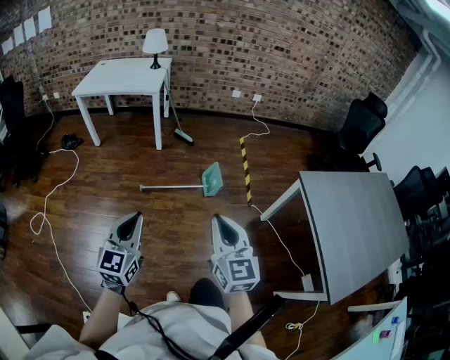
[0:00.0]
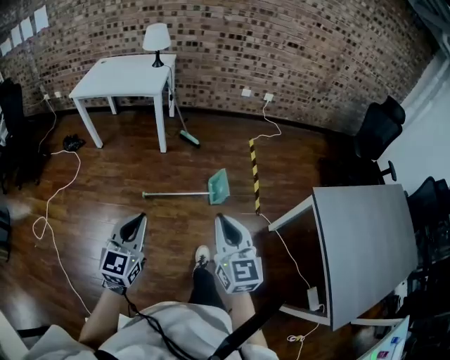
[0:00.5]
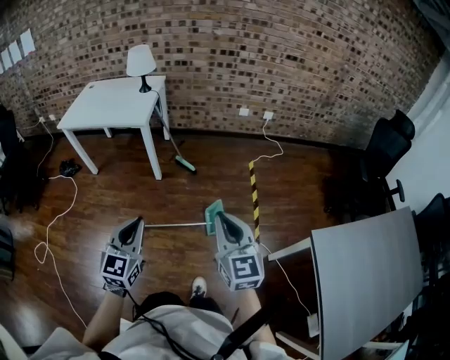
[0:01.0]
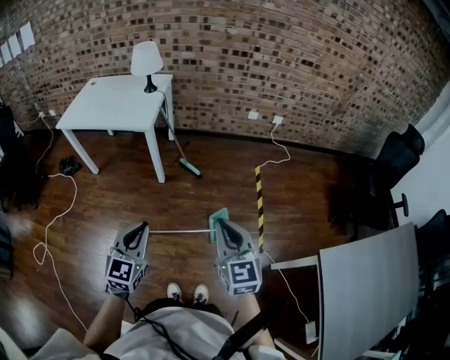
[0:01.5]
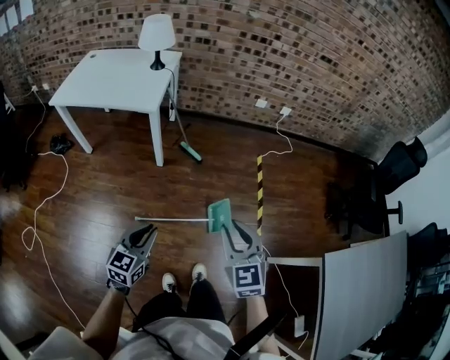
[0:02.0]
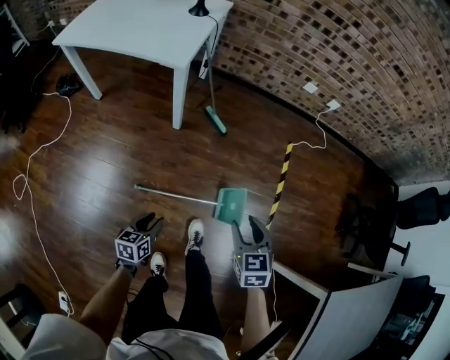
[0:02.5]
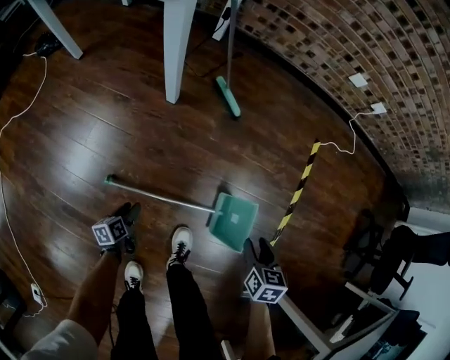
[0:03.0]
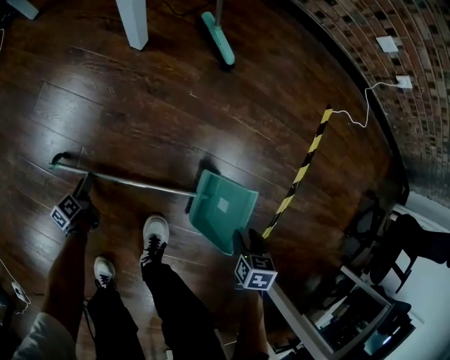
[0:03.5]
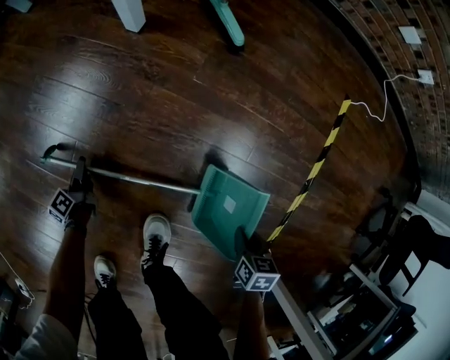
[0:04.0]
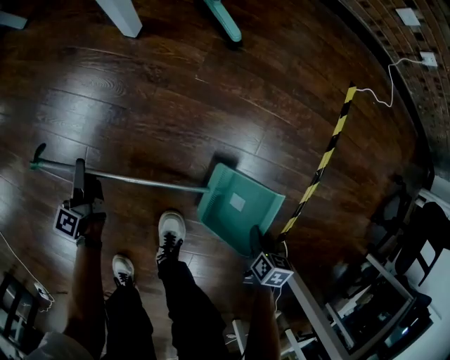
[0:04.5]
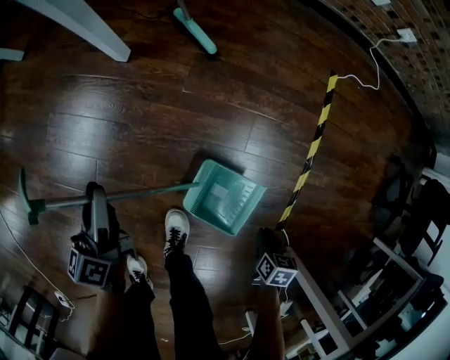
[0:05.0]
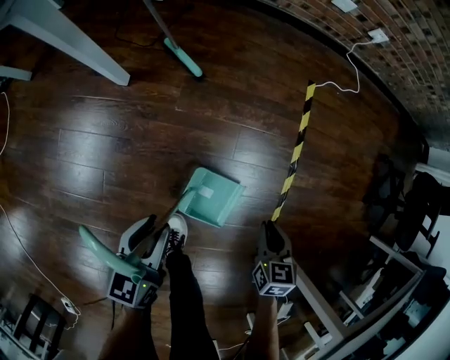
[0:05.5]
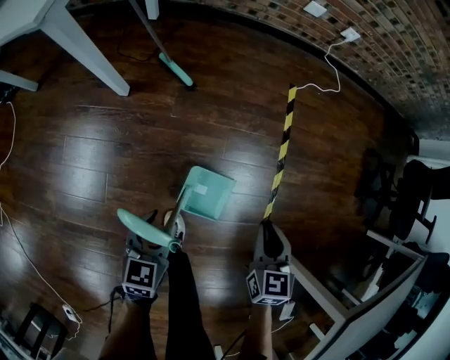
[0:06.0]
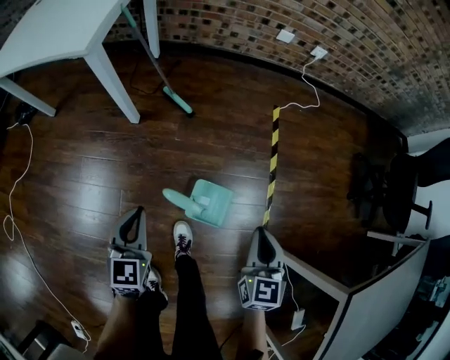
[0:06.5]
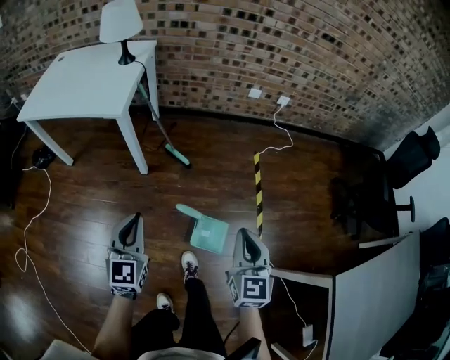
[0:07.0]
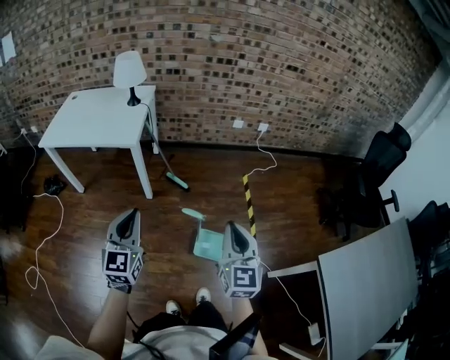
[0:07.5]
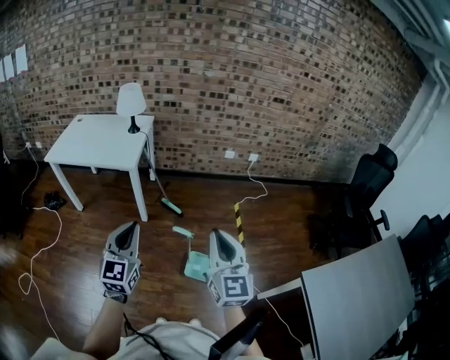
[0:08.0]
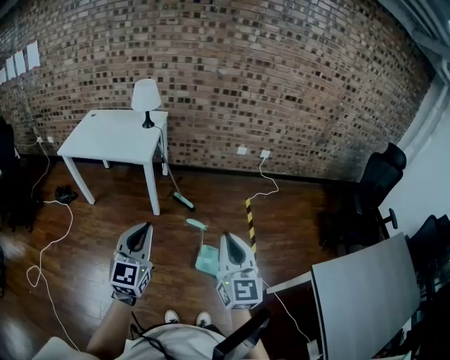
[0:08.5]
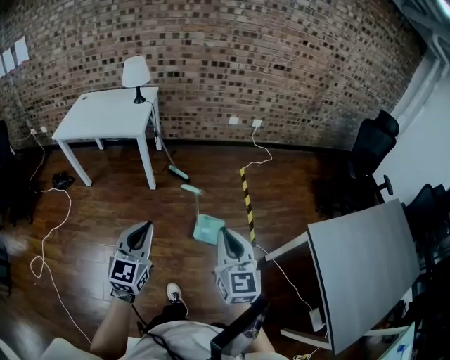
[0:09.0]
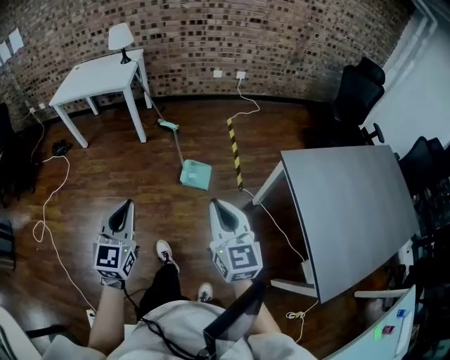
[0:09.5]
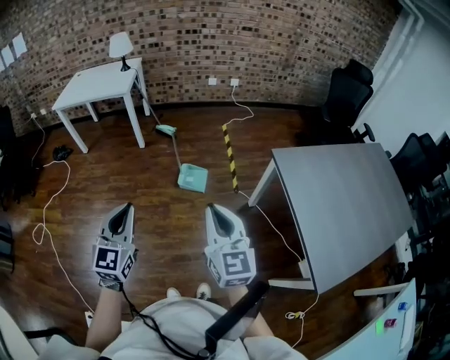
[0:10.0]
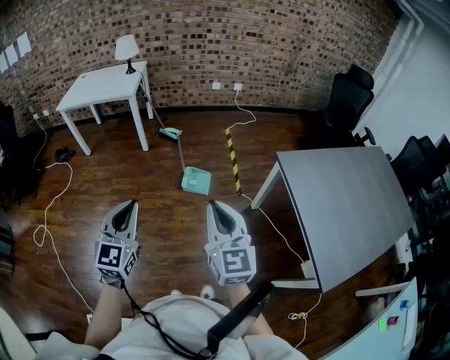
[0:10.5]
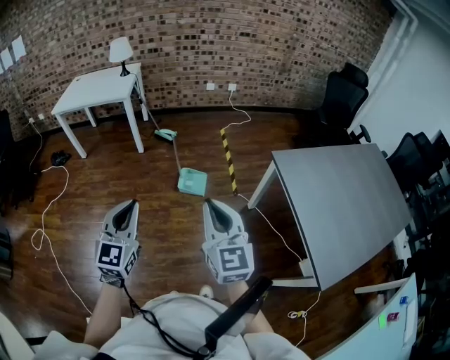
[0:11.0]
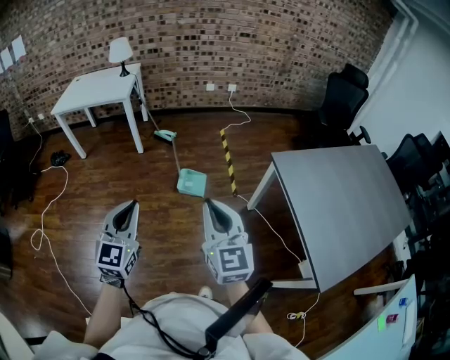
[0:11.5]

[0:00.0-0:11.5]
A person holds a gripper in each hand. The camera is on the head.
0:00.0 to 0:02.0: The pair of grippers is taken forward, about 50 cm. The right gripper turns by roughly 20 degrees, and opens.
0:02.0 to 0:04.0: The grippers both shift downward by some 80 cm. The right gripper tilts its fingers some 50 degrees downward, and opens, then closes once more. The left gripper twists roughly 70 degrees counterclockwise, seen from behind, and opens, then closes again.
0:04.0 to 0:06.0: Both grippers move upward, about 40 cm. The left gripper rotates around the line of its fingers by some 70 degrees, clockwise from behind, while the right gripper turns by about 30 degrees.
0:06.0 to 0:07.5: The two grippers go approximately 50 cm upward. The right gripper tips its fingers upward by approximately 40 degrees, while the left gripper tips its fingers upward by approximately 40 degrees, and closes.
0:07.5 to 0:09.5: The pair of grippers is taken backward, some 50 cm.
0:09.5 to 0:11.5: The left gripper changes place by about 5 cm, while the right gripper moves backward, roughly 5 cm.

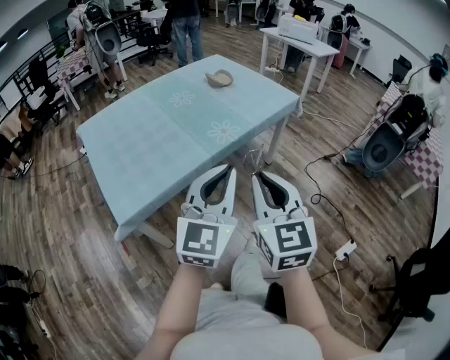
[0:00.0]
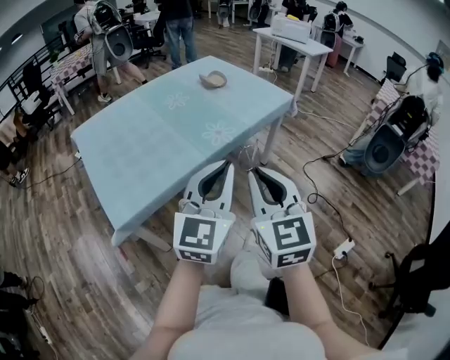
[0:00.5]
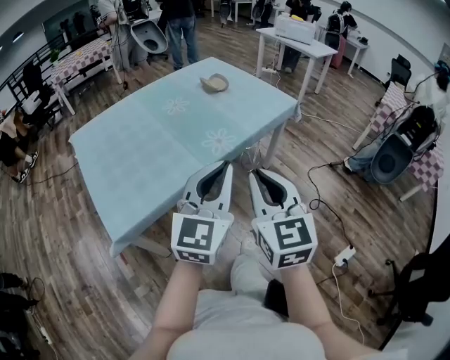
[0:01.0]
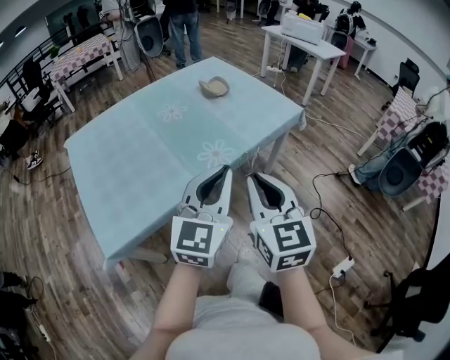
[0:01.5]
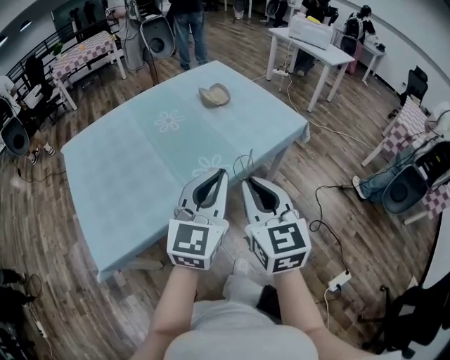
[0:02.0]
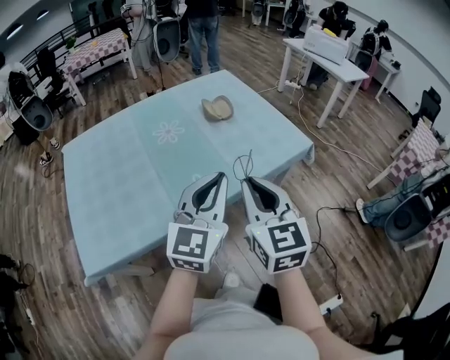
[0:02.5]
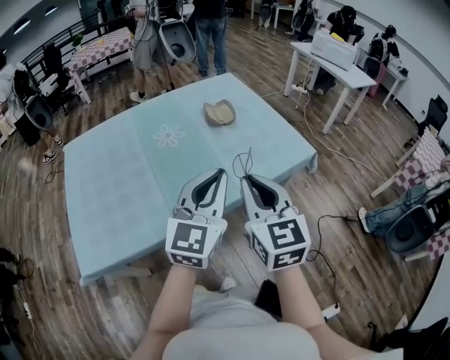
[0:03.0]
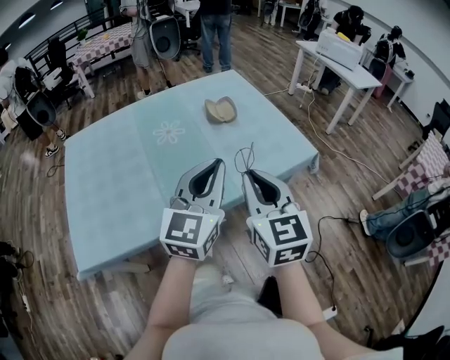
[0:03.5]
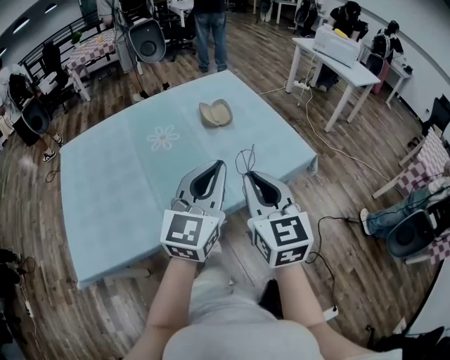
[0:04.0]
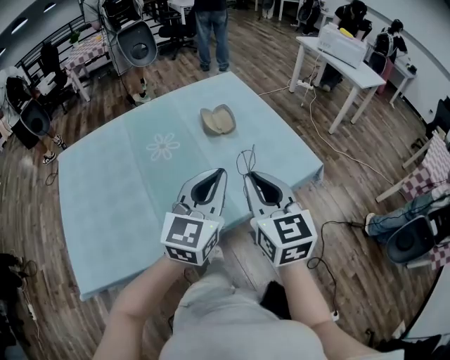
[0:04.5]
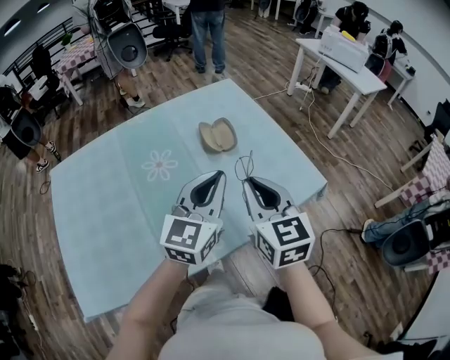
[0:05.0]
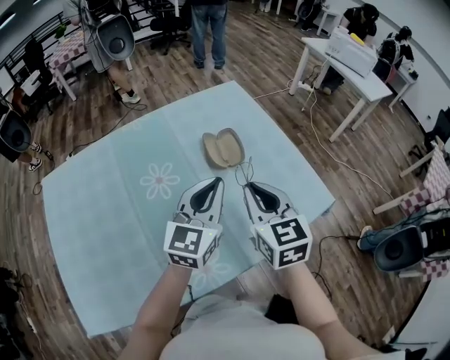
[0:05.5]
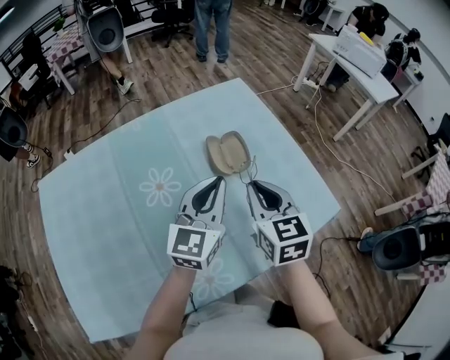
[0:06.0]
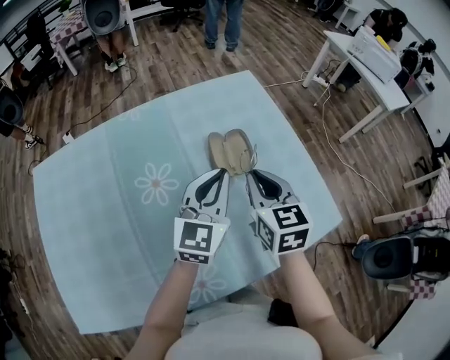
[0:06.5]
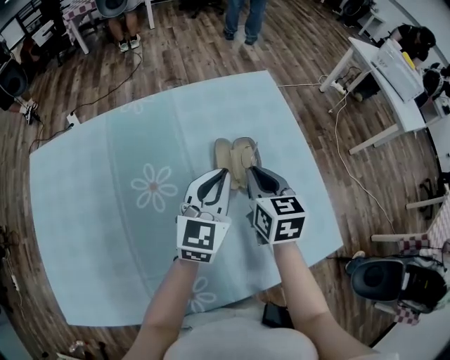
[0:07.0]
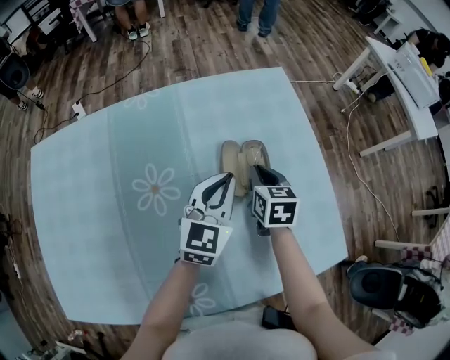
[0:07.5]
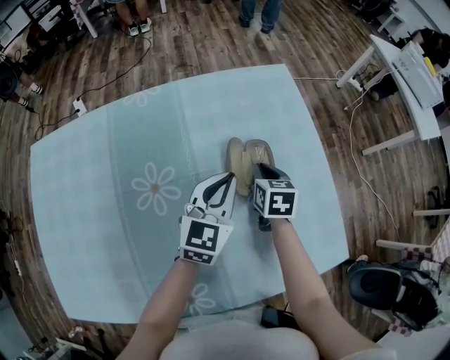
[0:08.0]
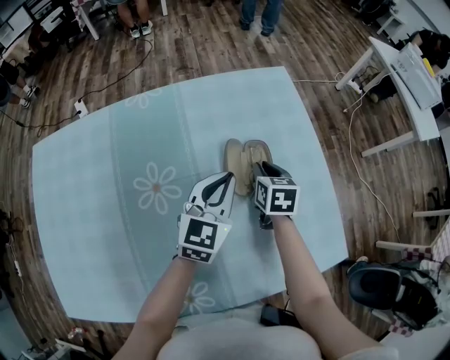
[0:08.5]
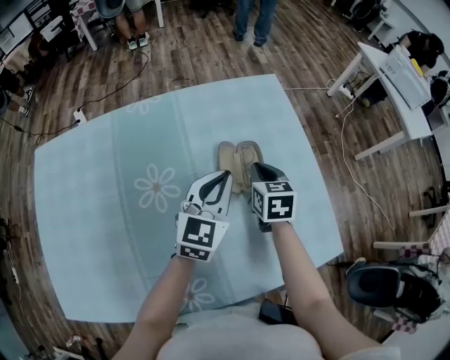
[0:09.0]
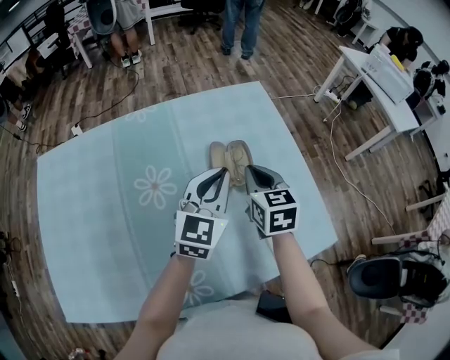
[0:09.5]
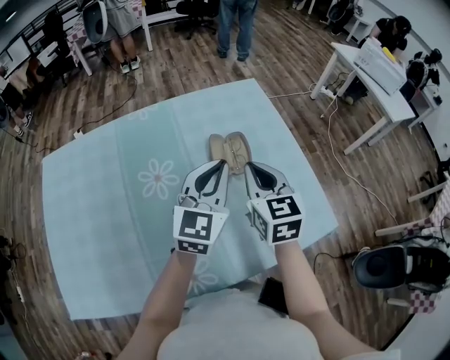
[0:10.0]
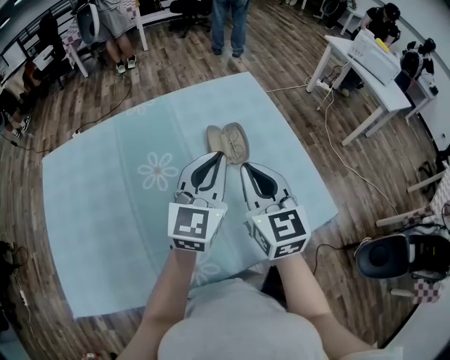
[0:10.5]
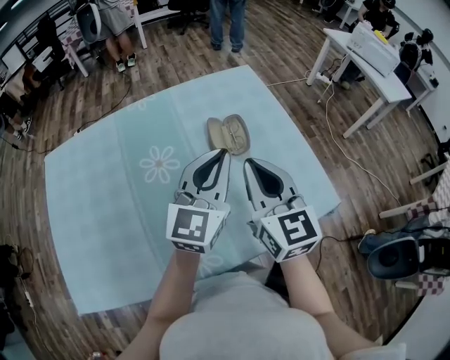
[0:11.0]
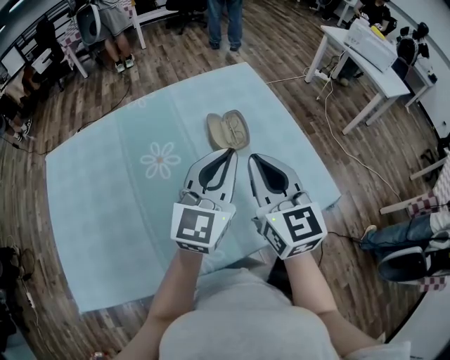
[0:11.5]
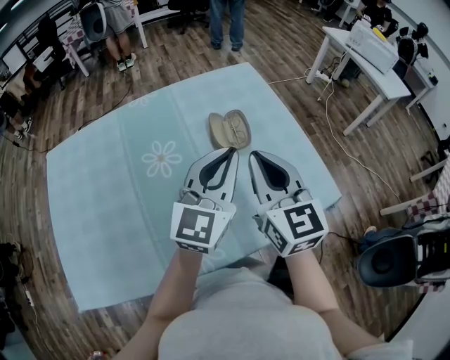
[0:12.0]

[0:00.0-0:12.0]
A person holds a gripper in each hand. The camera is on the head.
0:00.0 to 0:02.0: Both grippers move forward, some 25 cm.
0:02.0 to 0:04.0: Both grippers travel together forward and to the right, some 15 cm.
0:04.0 to 0:06.0: The two grippers go some 30 cm forward.
0:06.0 to 0:08.0: The left gripper is displaced forward and downward by roughly 15 cm; the right gripper moves downward and forward, approximately 30 cm, and rotates approximately 20 degrees.
0:08.0 to 0:10.0: The left gripper travels upward and backward by some 15 cm. The right gripper travels upward and backward by roughly 25 cm, and rotates approximately 30 degrees.
0:10.0 to 0:12.0: The right gripper shifts about 10 cm backward and upward. The left gripper shifts some 10 cm backward.

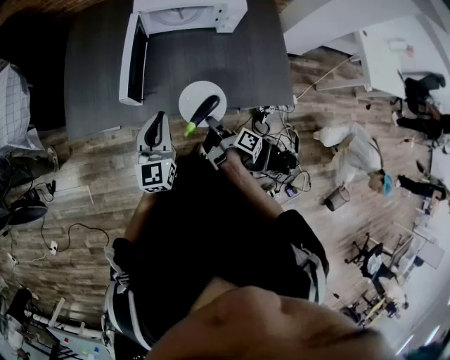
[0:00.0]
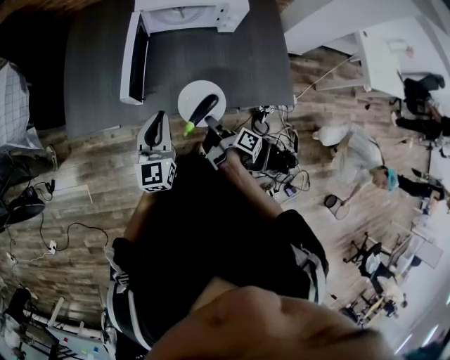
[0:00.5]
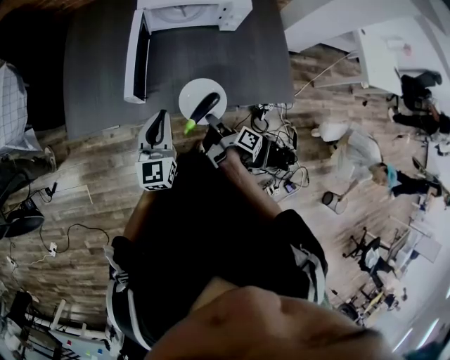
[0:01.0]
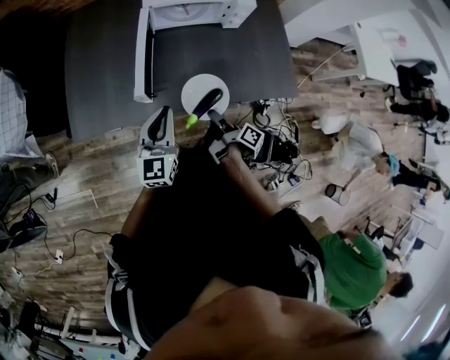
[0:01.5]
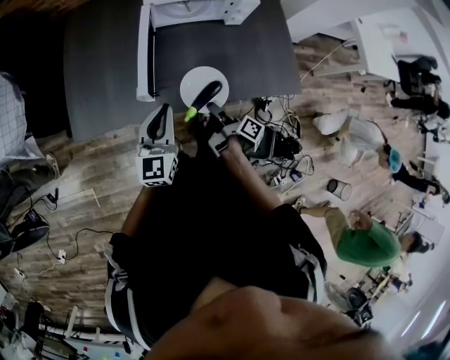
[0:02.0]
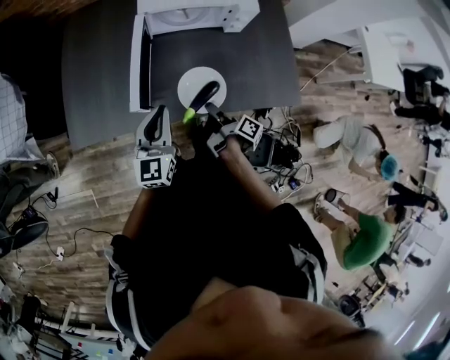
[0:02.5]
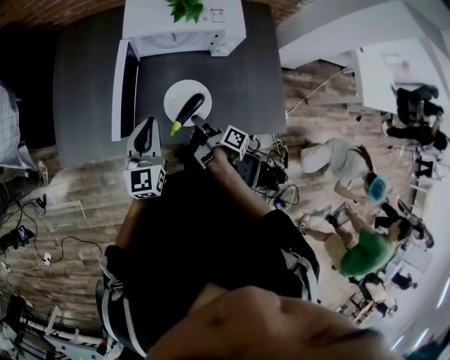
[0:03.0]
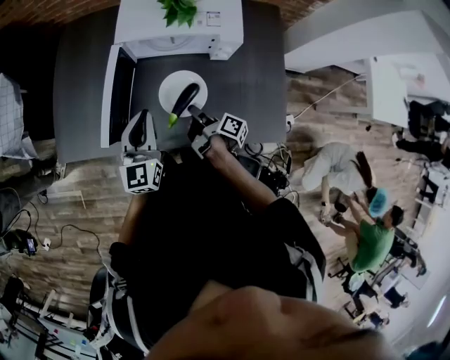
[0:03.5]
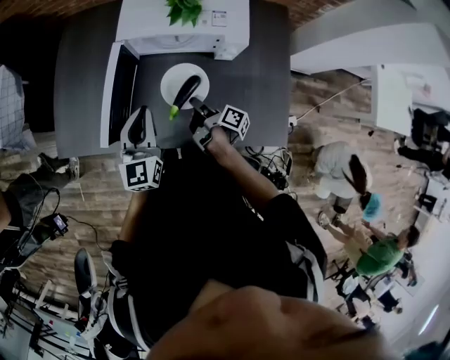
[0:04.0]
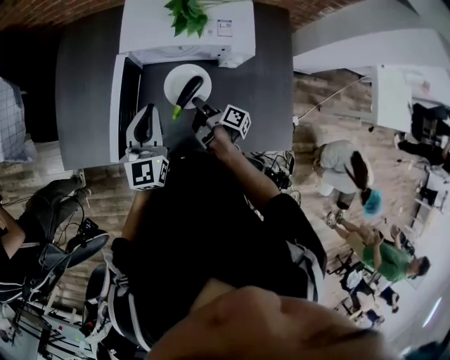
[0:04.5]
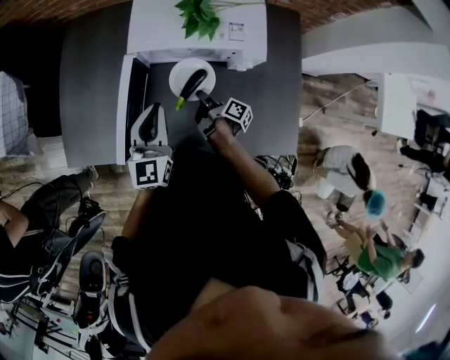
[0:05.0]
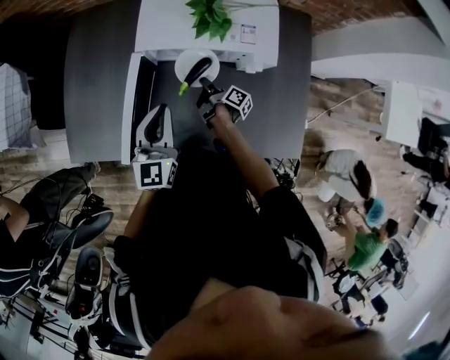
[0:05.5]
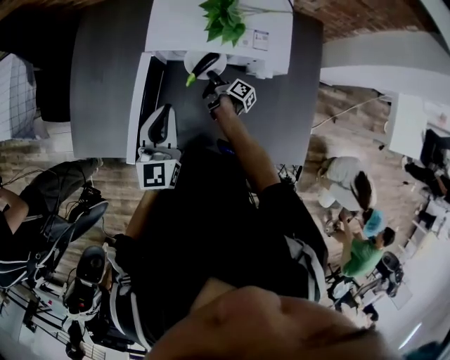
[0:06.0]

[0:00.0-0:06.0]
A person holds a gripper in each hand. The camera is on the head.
0:00.0 to 0:02.0: The left gripper moves some 5 cm.
0:02.0 to 0:04.0: The left gripper ends up roughly 20 cm from where it was.
0:04.0 to 0:06.0: The left gripper moves approximately 10 cm.
